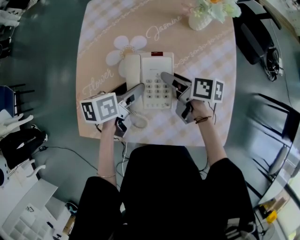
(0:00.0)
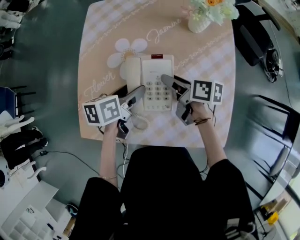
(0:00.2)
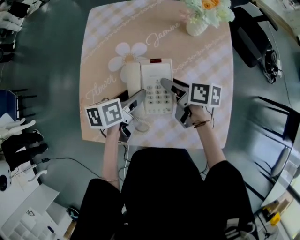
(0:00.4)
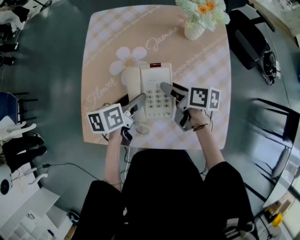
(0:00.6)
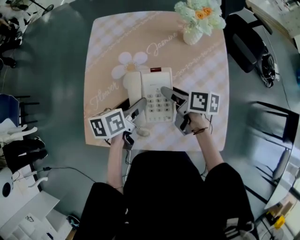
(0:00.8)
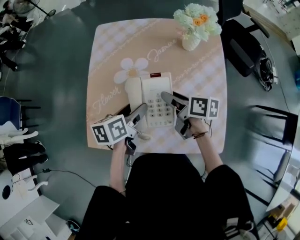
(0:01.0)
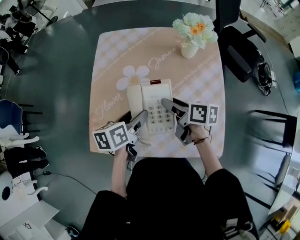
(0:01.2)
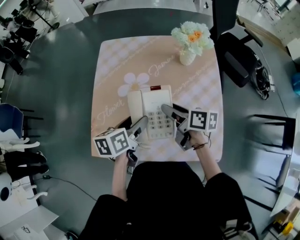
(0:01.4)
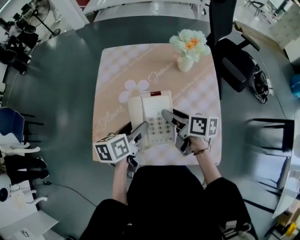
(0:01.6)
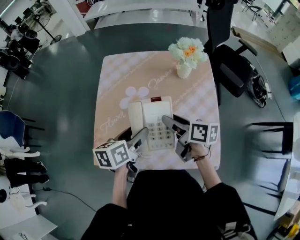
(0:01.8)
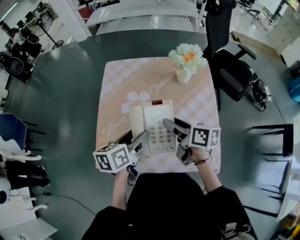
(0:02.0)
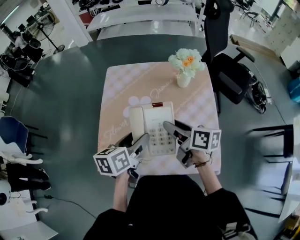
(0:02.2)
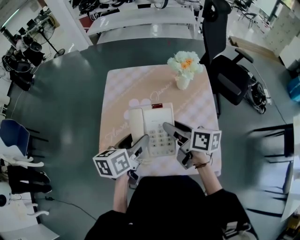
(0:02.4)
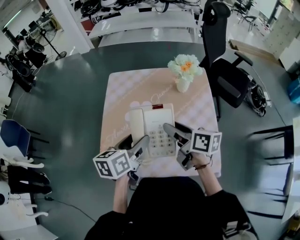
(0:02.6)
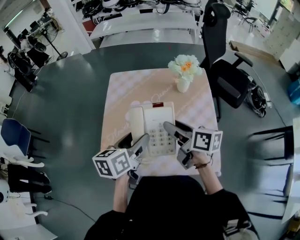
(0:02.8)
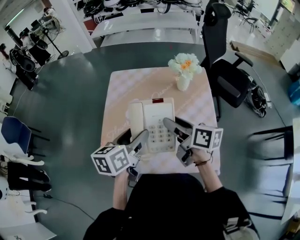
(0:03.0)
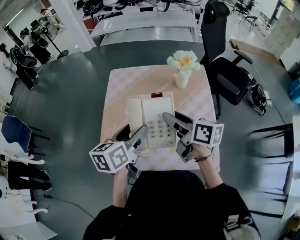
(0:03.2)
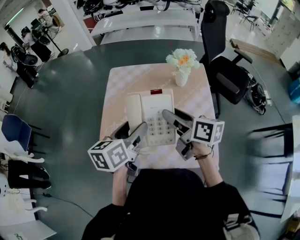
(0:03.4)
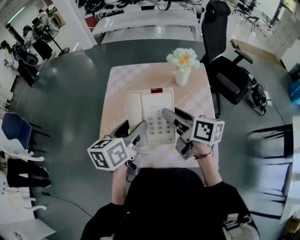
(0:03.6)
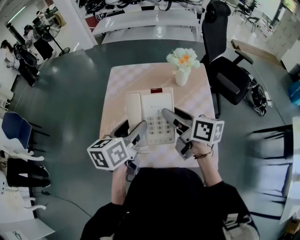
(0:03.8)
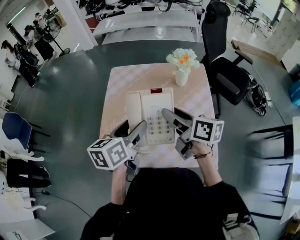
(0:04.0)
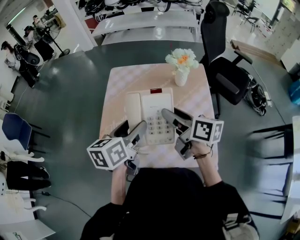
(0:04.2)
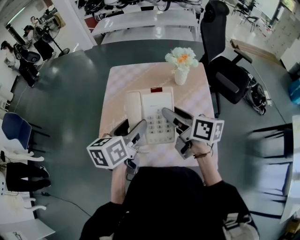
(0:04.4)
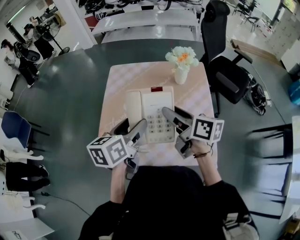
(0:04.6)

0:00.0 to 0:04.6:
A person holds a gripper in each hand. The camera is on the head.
0:00.0 to 0:01.6: The grippers both shift upward by roughly 10 cm.
0:01.6 to 0:03.0: The grippers both shift upward by roughly 10 cm.
0:03.0 to 0:04.6: The grippers move only a little.

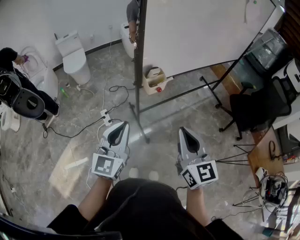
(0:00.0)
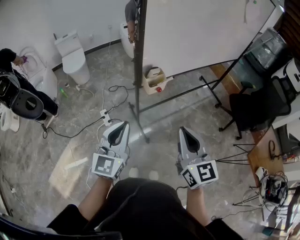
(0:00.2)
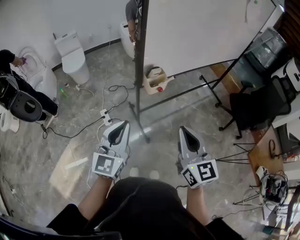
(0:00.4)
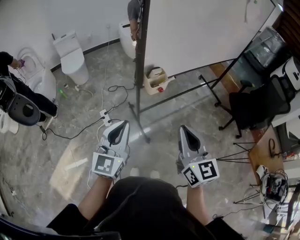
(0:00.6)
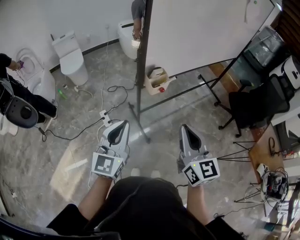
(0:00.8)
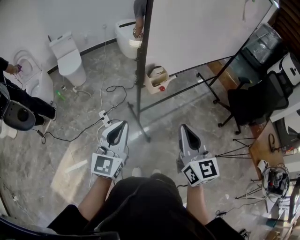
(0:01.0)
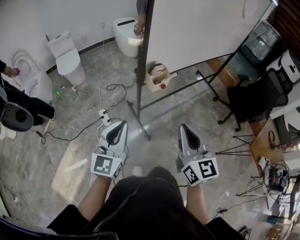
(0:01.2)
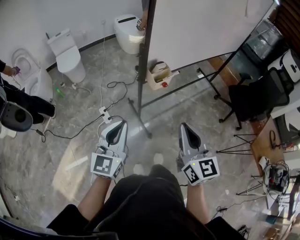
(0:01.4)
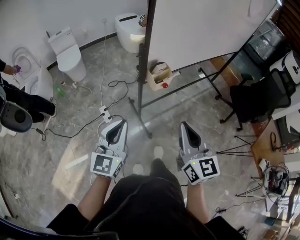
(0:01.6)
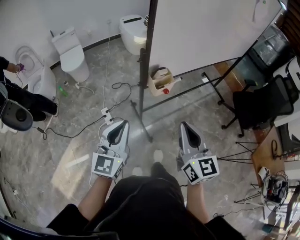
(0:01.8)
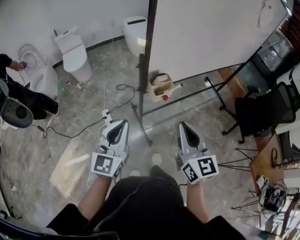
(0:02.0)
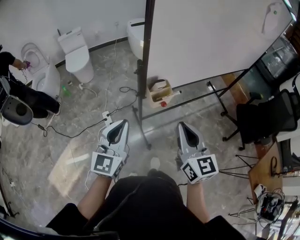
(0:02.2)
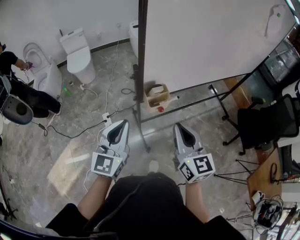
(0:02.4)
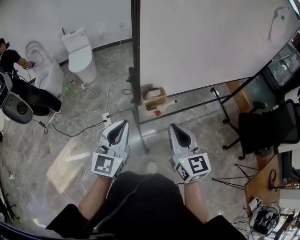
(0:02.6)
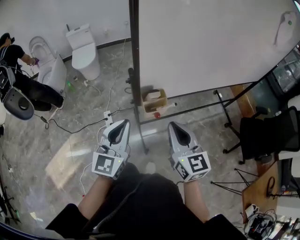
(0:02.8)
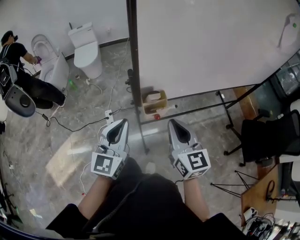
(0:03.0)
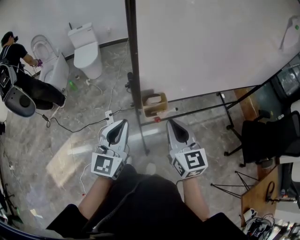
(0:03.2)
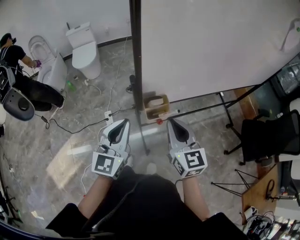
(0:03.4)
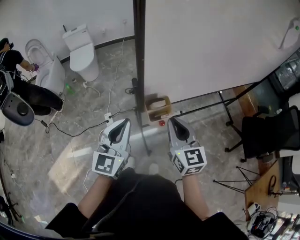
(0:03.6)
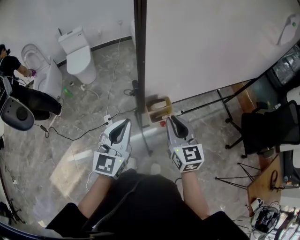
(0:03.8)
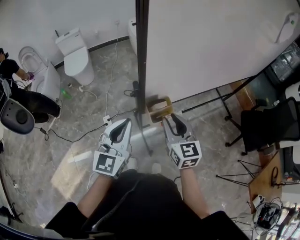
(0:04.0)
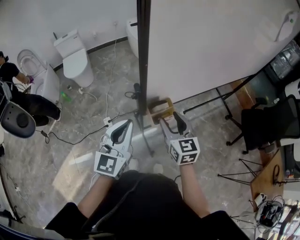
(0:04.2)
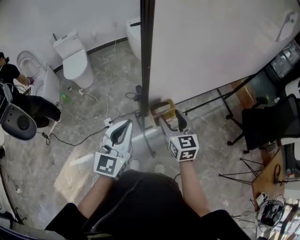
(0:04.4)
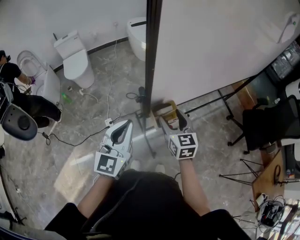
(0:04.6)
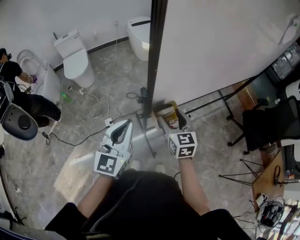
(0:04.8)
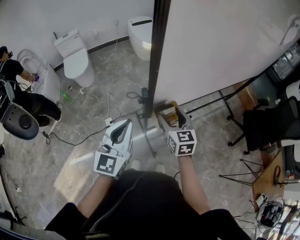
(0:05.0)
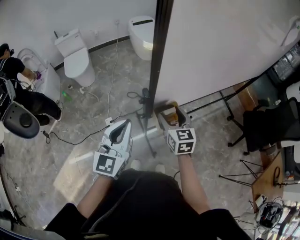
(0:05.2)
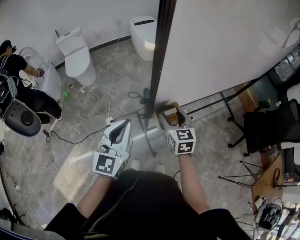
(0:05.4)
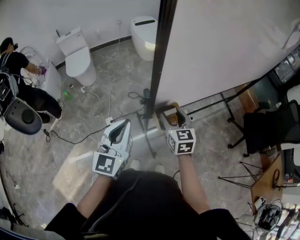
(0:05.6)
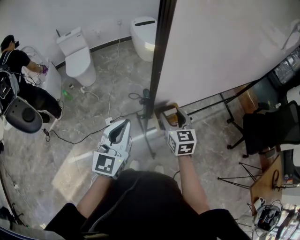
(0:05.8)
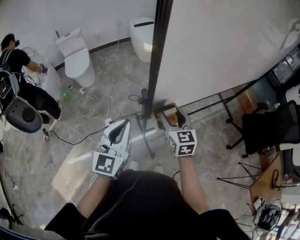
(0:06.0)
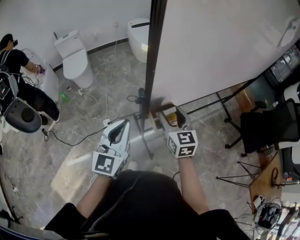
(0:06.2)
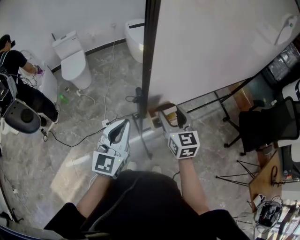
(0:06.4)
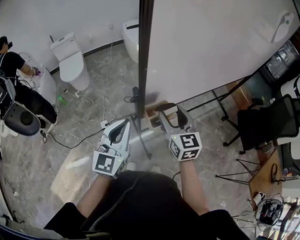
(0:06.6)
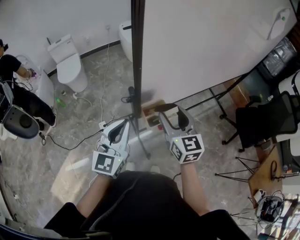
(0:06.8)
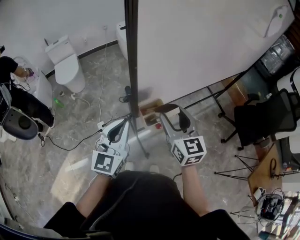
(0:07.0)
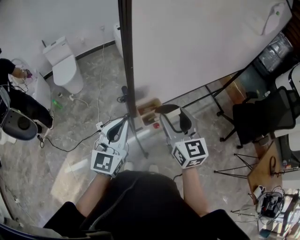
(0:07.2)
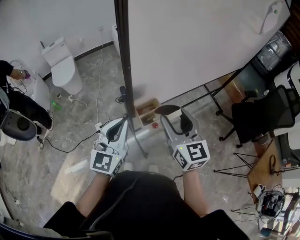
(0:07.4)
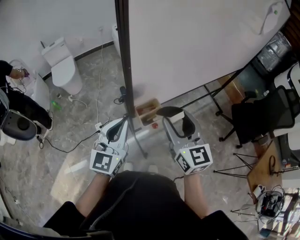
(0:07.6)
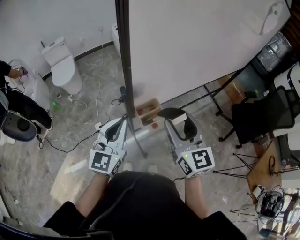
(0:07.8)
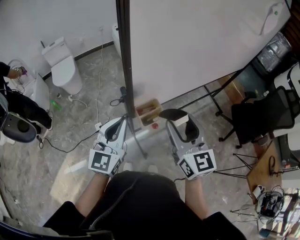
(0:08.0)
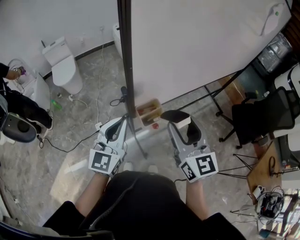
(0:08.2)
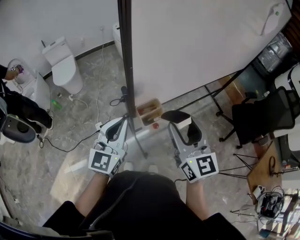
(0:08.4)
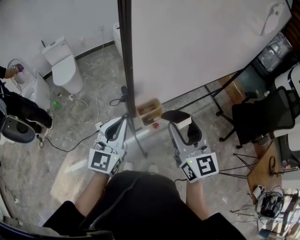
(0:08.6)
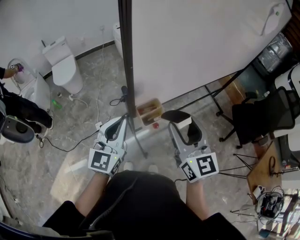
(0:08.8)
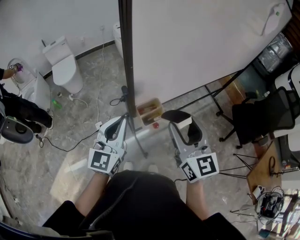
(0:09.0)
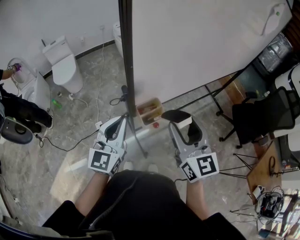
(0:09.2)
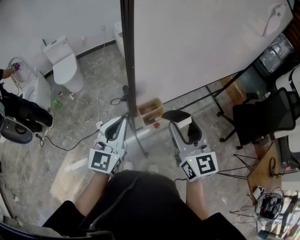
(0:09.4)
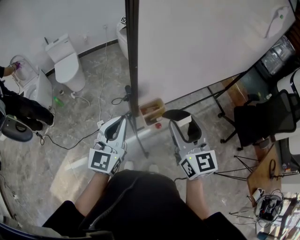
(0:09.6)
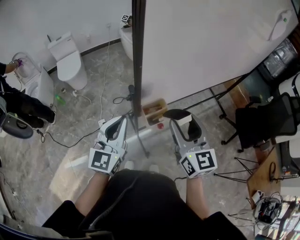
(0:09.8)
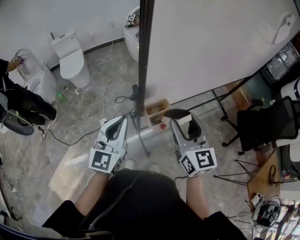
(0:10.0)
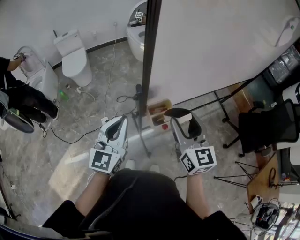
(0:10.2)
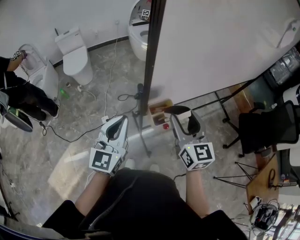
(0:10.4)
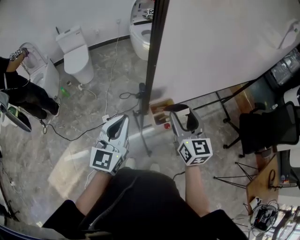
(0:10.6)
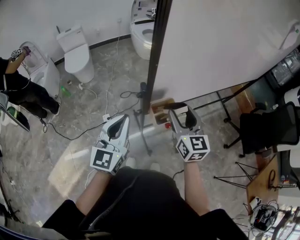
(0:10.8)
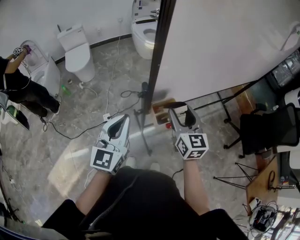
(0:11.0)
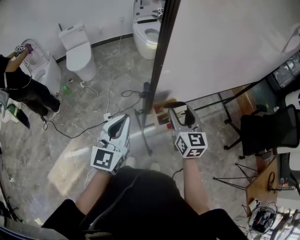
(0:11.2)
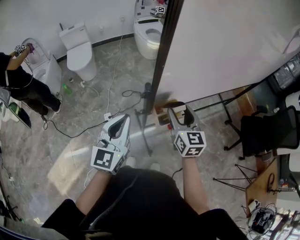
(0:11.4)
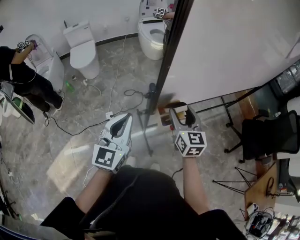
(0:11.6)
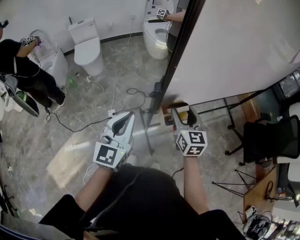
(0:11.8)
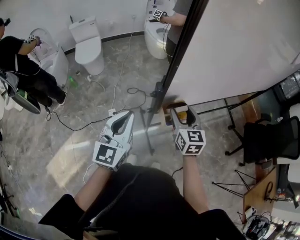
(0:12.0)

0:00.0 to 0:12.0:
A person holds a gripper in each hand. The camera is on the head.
0:00.0 to 0:01.6: The left gripper goes approximately 5 cm to the left. Meanwhile the right gripper moves about 5 cm.
0:01.6 to 0:03.0: The left gripper is displaced forward and to the right by roughly 20 cm, while the right gripper travels forward by approximately 20 cm.
0:03.0 to 0:04.4: The left gripper shifts some 5 cm forward. The right gripper heads forward, downward and to the left, covering some 15 cm, and opens up.
0:04.4 to 0:06.0: There are only small adjustments of the grippers.
0:06.0 to 0:07.6: The right gripper heads upward, backward and to the right, covering approximately 15 cm. Meanwhile the left gripper goes about 5 cm to the right.
0:07.6 to 0:09.0: There are only small adjustments of the grippers.
0:09.0 to 0:10.4: The right gripper is displaced forward by roughly 5 cm.
0:10.4 to 0:12.0: The right gripper travels downward and forward by roughly 10 cm.

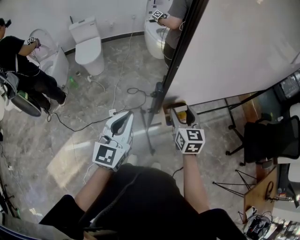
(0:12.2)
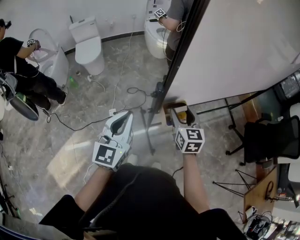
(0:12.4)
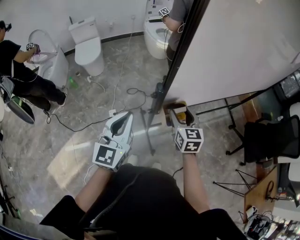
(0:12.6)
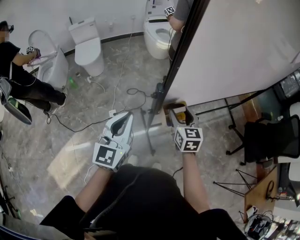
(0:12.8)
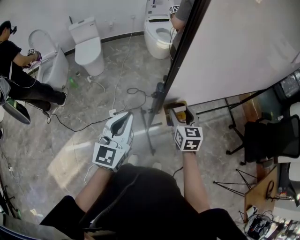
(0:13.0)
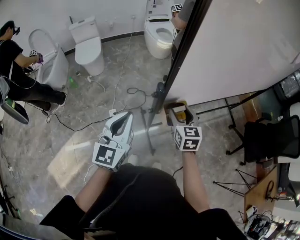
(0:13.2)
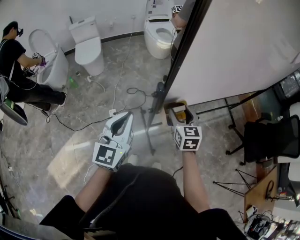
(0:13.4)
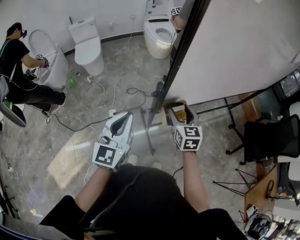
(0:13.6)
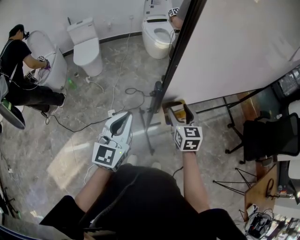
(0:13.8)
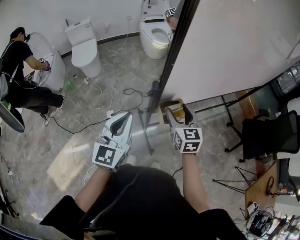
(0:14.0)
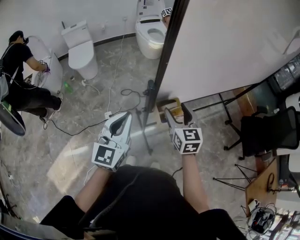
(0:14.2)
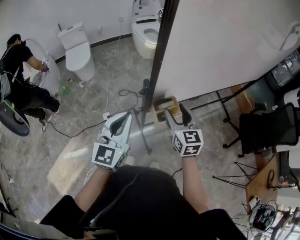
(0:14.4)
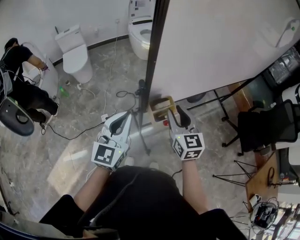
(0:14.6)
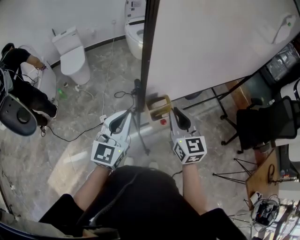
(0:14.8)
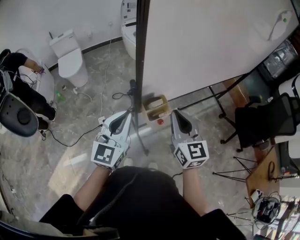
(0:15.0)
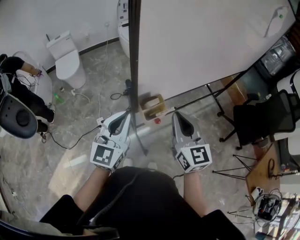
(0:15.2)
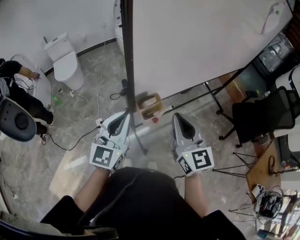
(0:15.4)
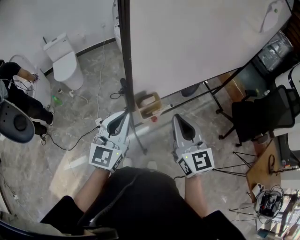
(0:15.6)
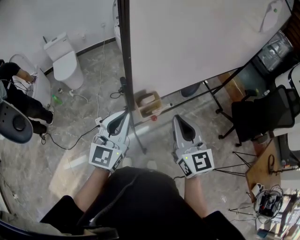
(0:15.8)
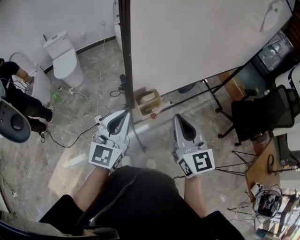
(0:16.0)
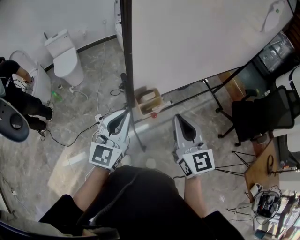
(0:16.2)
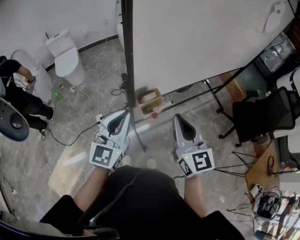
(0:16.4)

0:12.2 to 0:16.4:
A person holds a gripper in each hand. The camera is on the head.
0:12.2 to 0:13.6: There are only small adjustments of the grippers.
0:13.6 to 0:15.0: The right gripper moves upward, backward and to the right, about 15 cm, and closes its fingers; the left gripper shifts roughly 5 cm to the right.
0:15.0 to 0:16.4: The right gripper moves backward, approximately 5 cm.

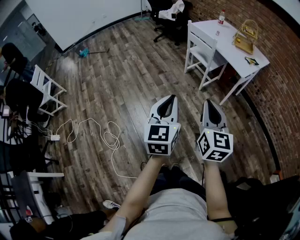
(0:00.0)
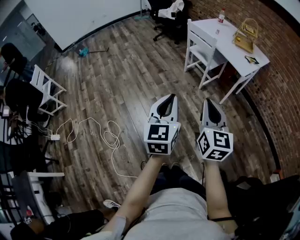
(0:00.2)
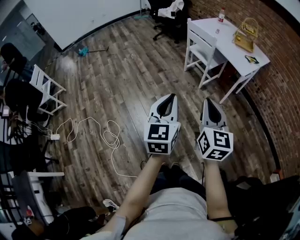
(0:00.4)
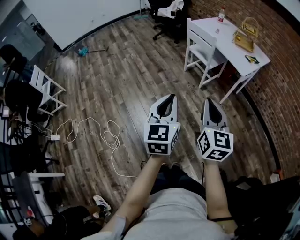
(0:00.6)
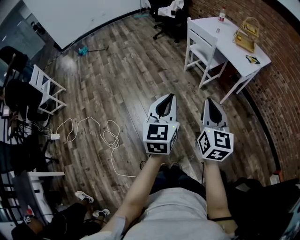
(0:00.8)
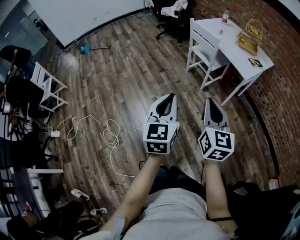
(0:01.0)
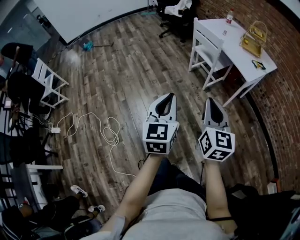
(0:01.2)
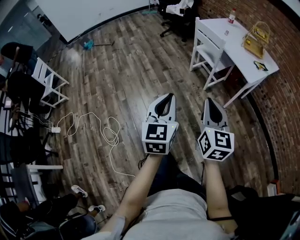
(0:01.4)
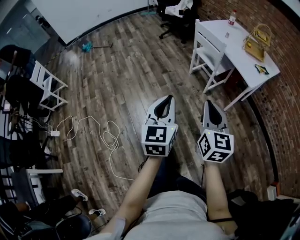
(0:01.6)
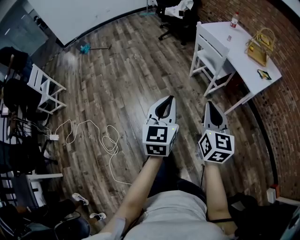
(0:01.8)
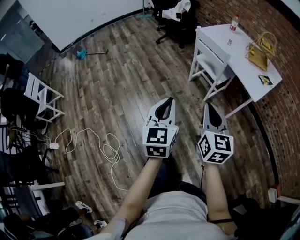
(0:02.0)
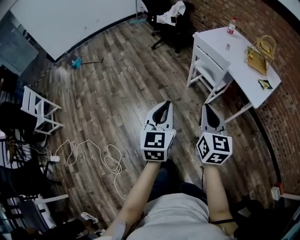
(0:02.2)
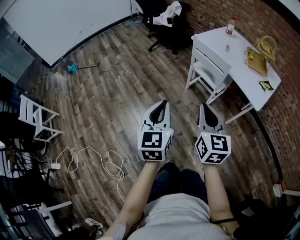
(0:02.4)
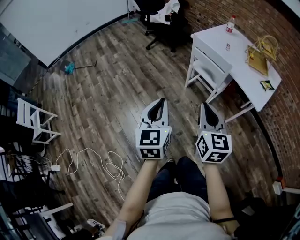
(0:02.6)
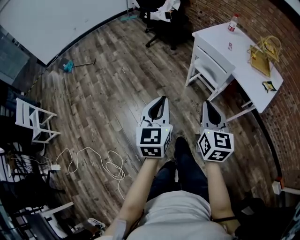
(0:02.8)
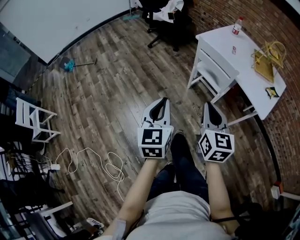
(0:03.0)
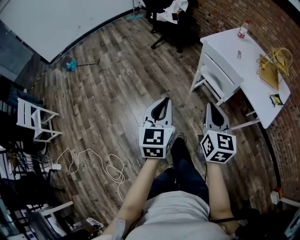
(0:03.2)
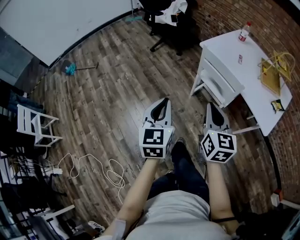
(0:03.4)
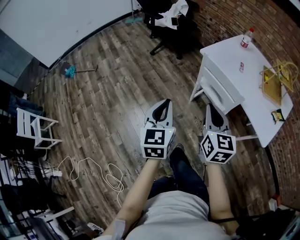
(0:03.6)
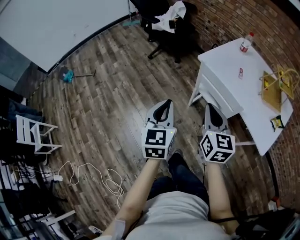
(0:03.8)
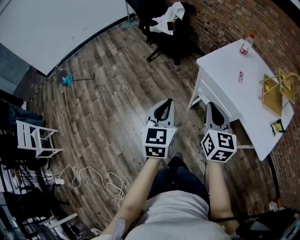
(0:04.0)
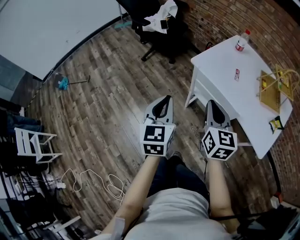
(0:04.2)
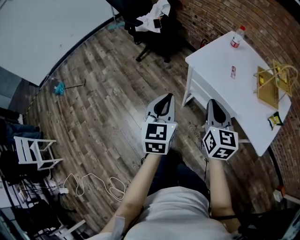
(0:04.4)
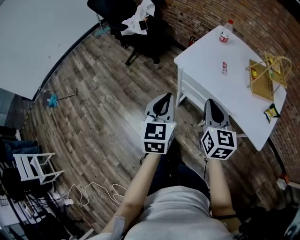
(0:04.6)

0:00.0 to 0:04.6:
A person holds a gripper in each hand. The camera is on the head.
0:00.0 to 0:01.6: The two grippers go about 10 cm forward.
0:01.6 to 0:03.0: The grippers both shift forward by about 35 cm.
0:03.0 to 0:04.6: The two grippers go some 35 cm forward.
